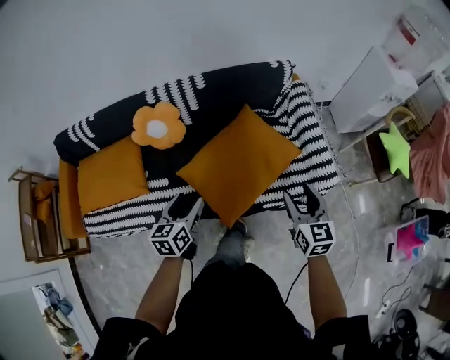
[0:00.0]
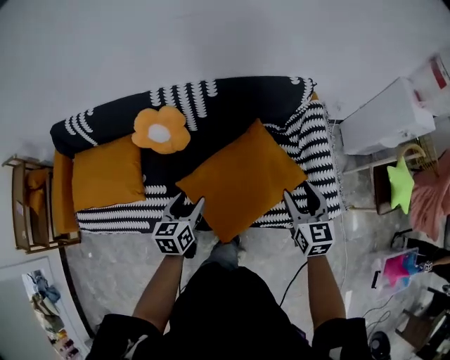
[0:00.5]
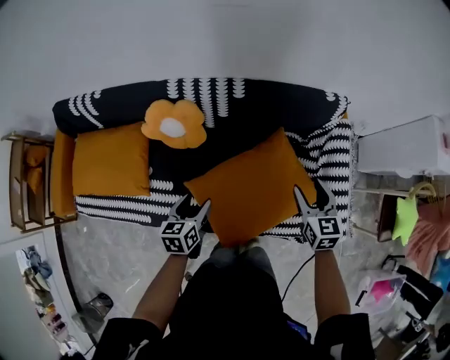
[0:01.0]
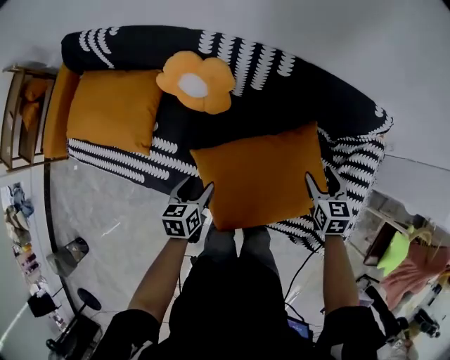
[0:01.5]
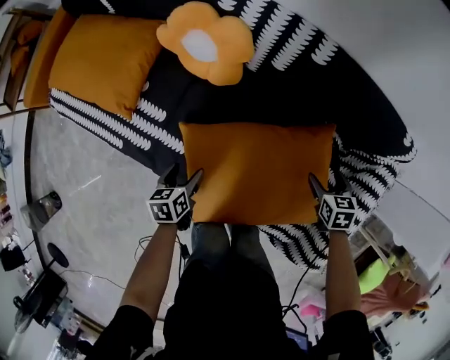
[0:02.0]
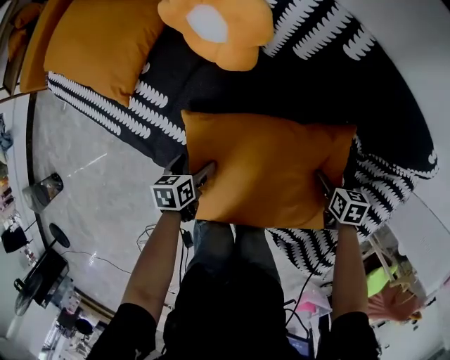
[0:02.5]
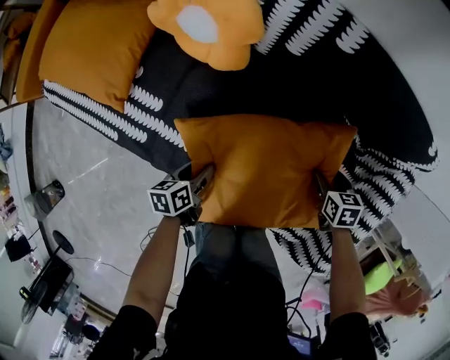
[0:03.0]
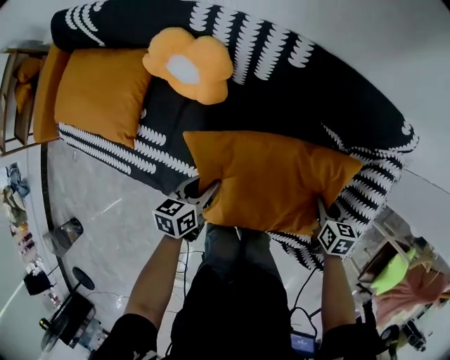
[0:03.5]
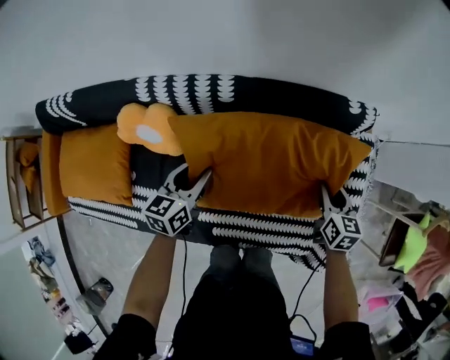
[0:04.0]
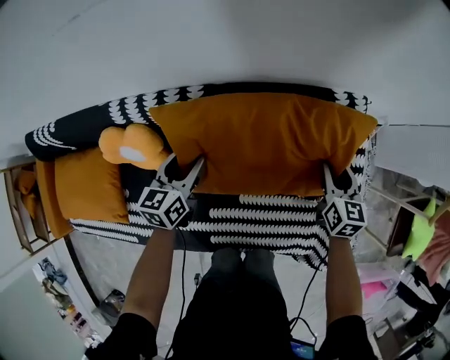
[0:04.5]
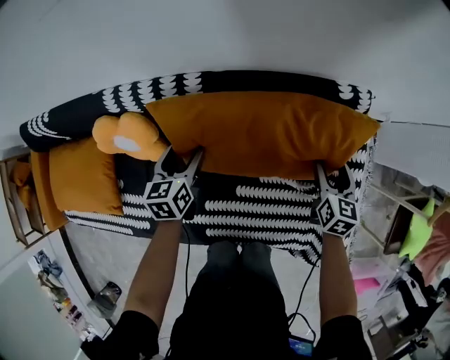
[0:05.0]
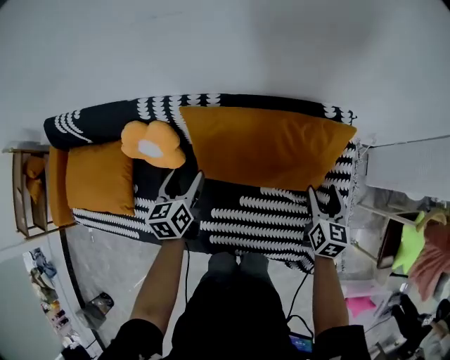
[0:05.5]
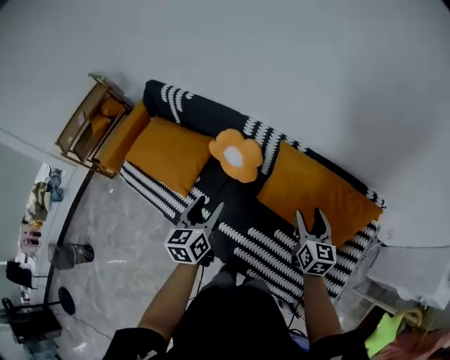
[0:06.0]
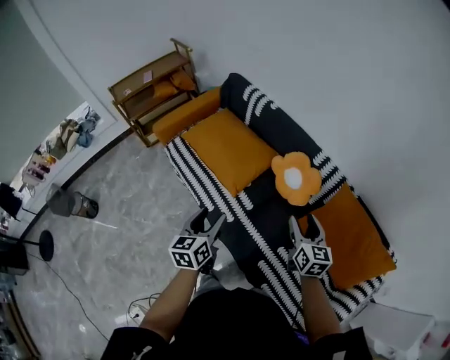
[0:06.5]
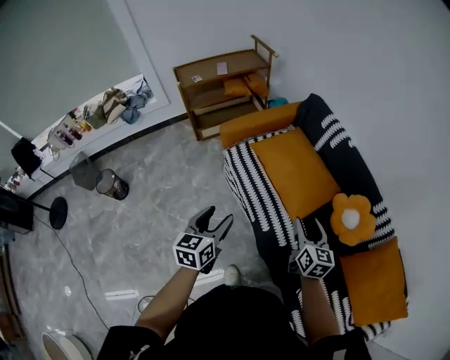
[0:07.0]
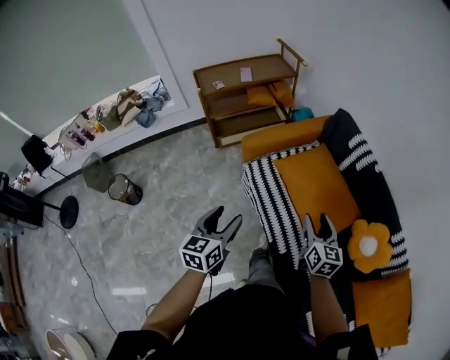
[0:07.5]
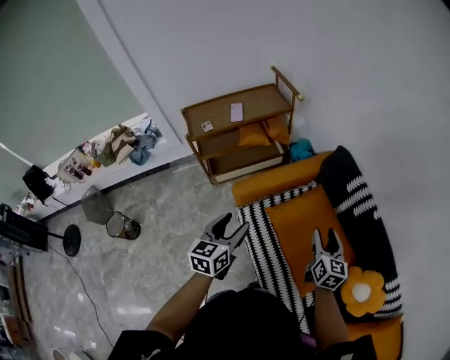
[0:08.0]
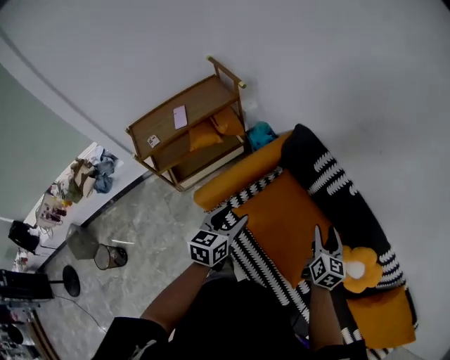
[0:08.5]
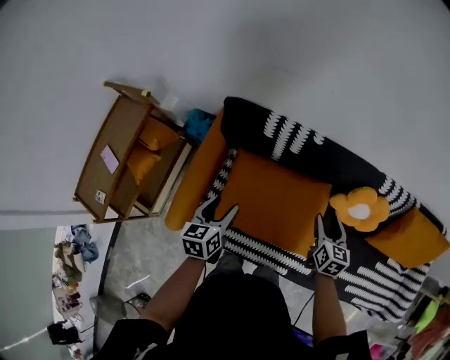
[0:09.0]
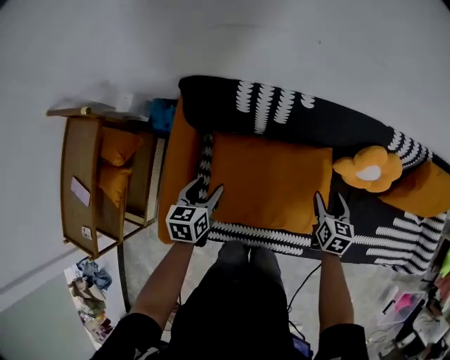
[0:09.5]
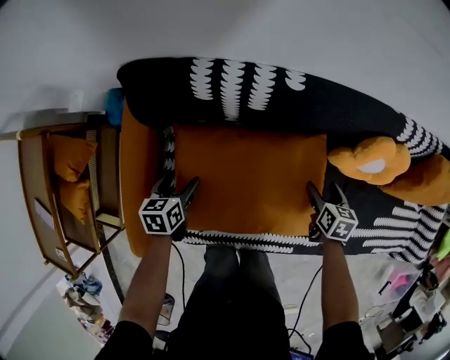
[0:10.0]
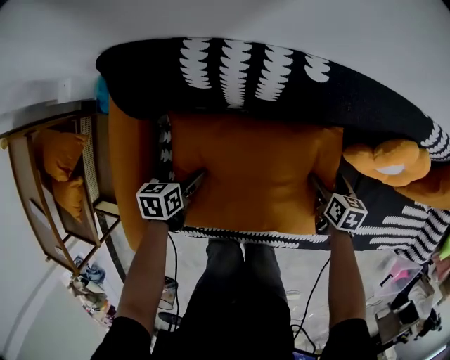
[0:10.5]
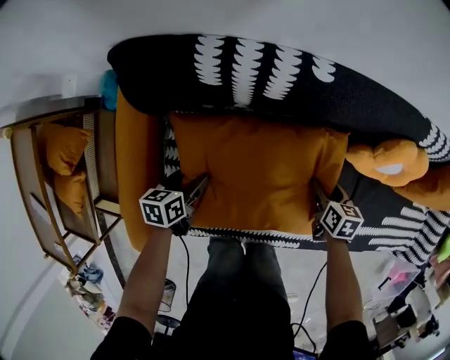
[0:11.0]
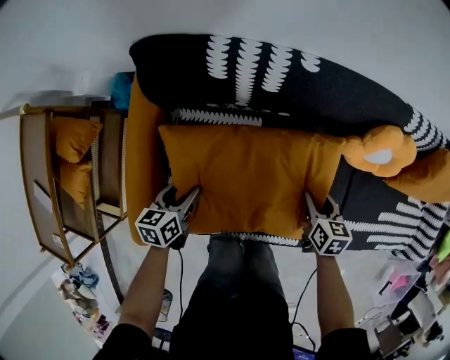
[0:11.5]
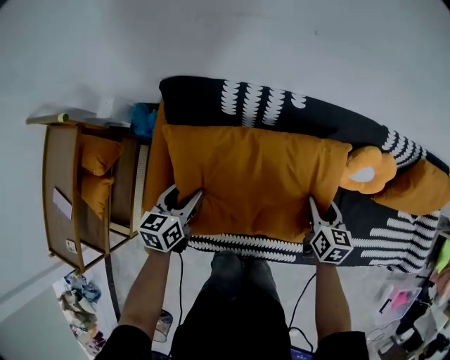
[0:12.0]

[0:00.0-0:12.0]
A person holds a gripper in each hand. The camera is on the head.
0:00.0 to 0:02.0: The left gripper shifts some 30 cm downward, and changes its angle by about 50 degrees. The right gripper shifts by roughly 40 cm, and angles its fingers downward, by approximately 40 degrees.
0:02.0 to 0:04.0: The right gripper goes roughly 10 cm upward, turns by some 40 degrees, and closes. Meanwhile the left gripper changes place by roughly 30 cm, swivels about 40 degrees, and closes its fingers.
0:04.0 to 0:06.0: The right gripper shifts by roughly 25 cm, and swivels some 30 degrees. Meanwhile the left gripper travels upward by roughly 20 cm, and turns by roughly 40 degrees.
0:06.0 to 0:08.0: Both grippers are carried roughly 70 cm. The right gripper changes its angle by roughly 30 degrees; the left gripper turns by roughly 30 degrees.
0:08.0 to 0:10.0: The grippers both shift downward by about 35 cm. The right gripper tips its fingers downward by roughly 40 degrees; the left gripper tips its fingers downward by some 30 degrees.
0:10.0 to 0:12.0: The right gripper is displaced upward and to the left by approximately 15 cm, and closes up; the left gripper travels upward by about 15 cm, and swivels approximately 20 degrees.

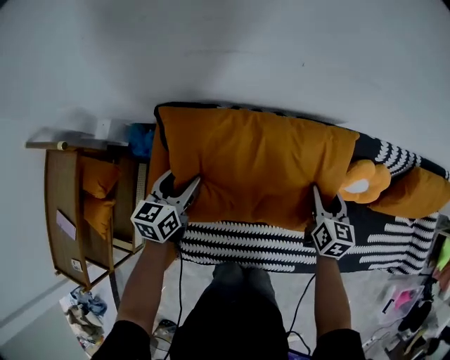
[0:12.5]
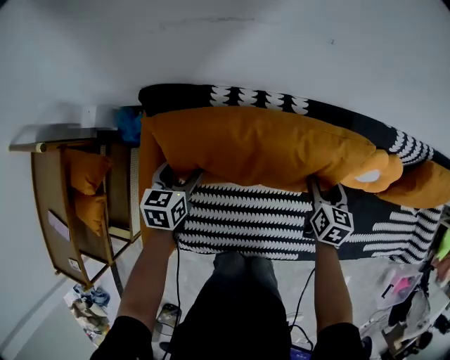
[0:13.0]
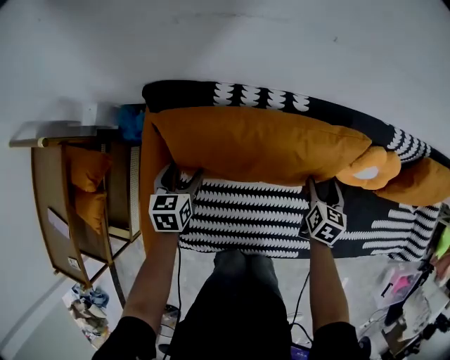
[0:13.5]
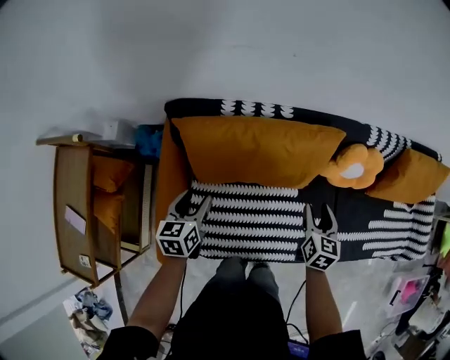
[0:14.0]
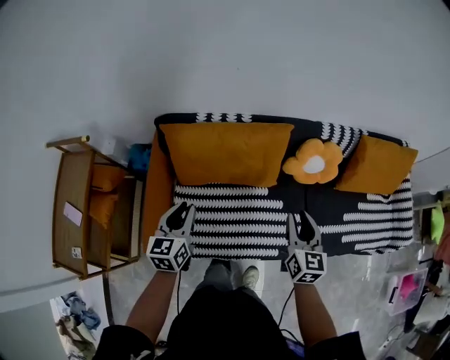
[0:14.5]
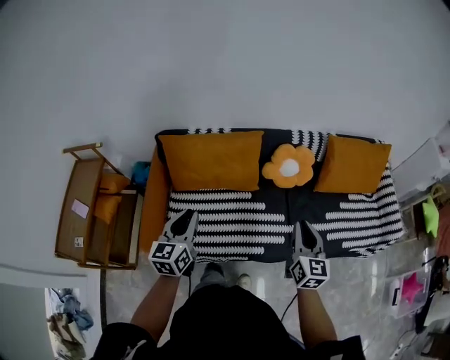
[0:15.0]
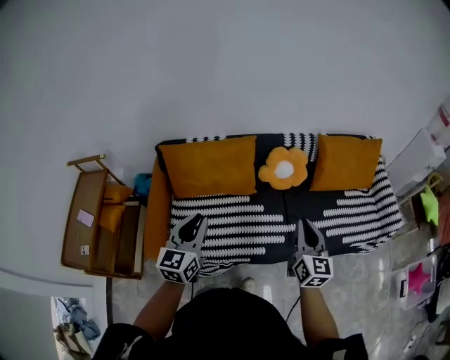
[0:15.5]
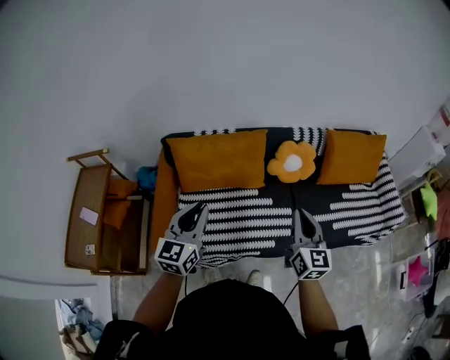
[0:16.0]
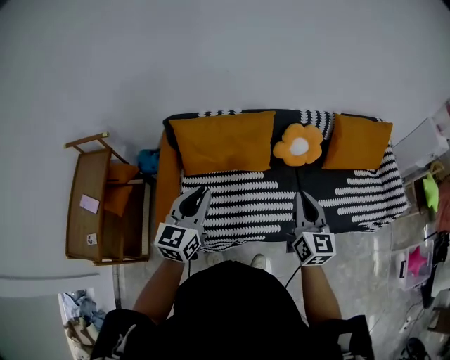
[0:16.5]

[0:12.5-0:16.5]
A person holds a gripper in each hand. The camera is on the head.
0:12.5 to 0:14.5: The right gripper shifts some 25 cm backward and upward. The left gripper travels backward, upward and to the right by approximately 25 cm, and closes.
0:14.5 to 0:16.5: The right gripper goes about 20 cm upward and backward, while the left gripper shifts about 20 cm upward, backward and to the right, and swivels some 20 degrees.

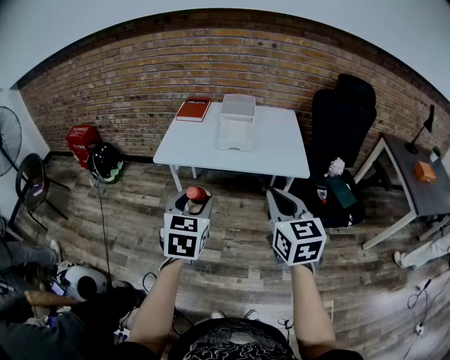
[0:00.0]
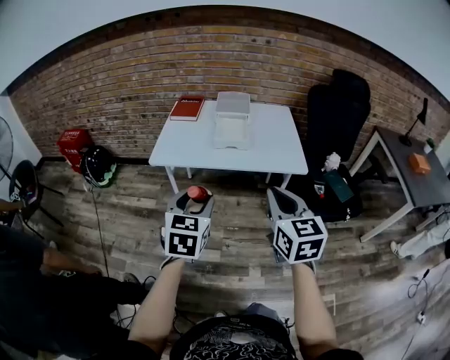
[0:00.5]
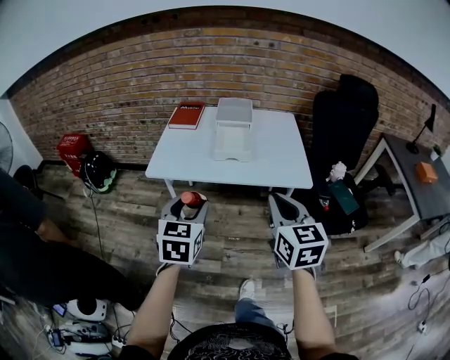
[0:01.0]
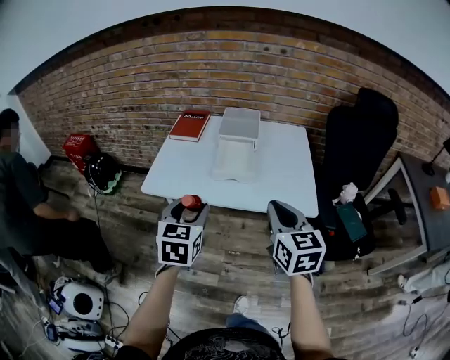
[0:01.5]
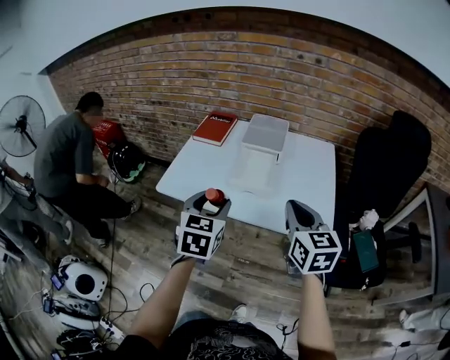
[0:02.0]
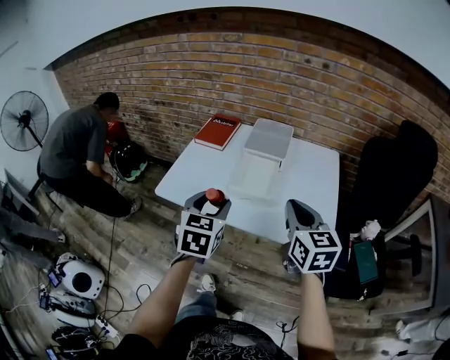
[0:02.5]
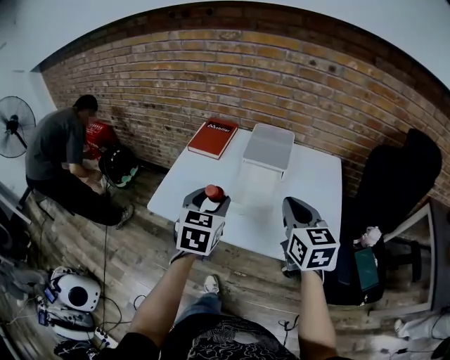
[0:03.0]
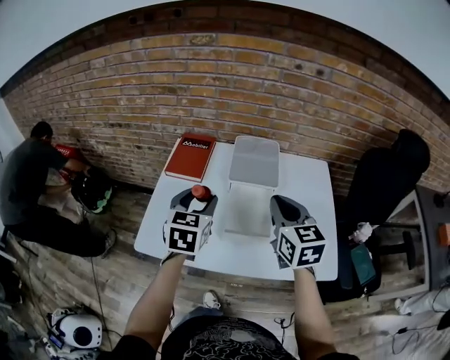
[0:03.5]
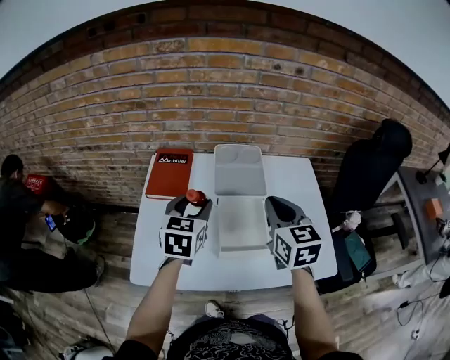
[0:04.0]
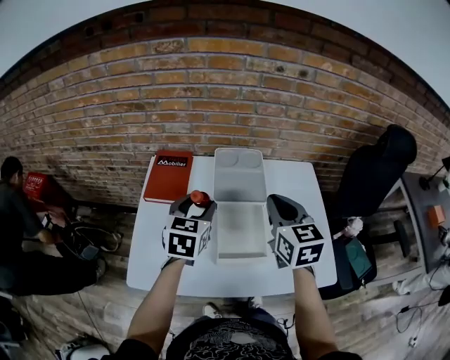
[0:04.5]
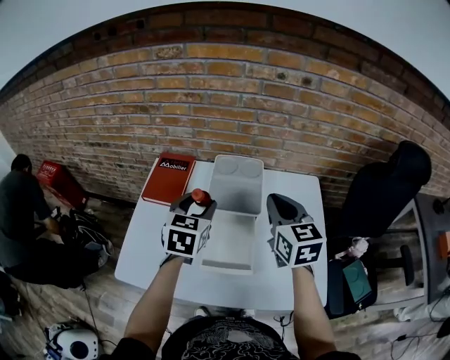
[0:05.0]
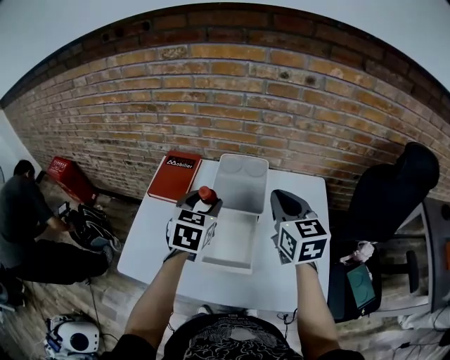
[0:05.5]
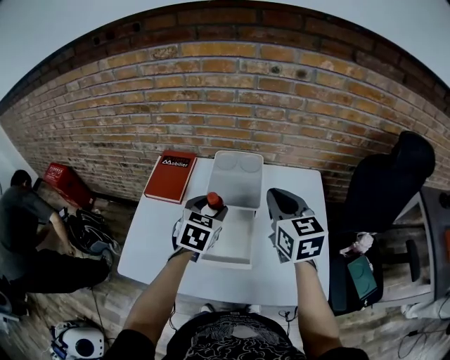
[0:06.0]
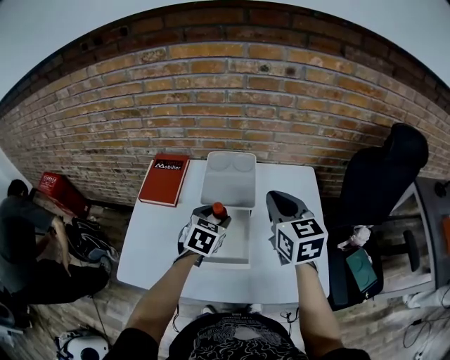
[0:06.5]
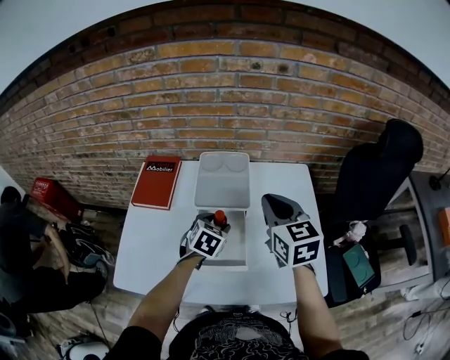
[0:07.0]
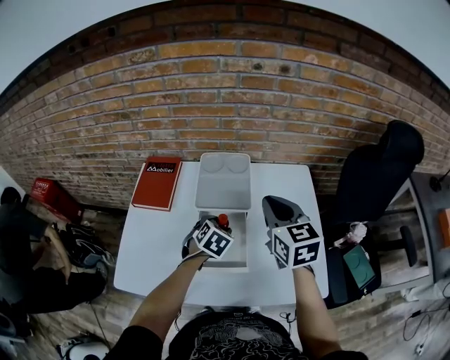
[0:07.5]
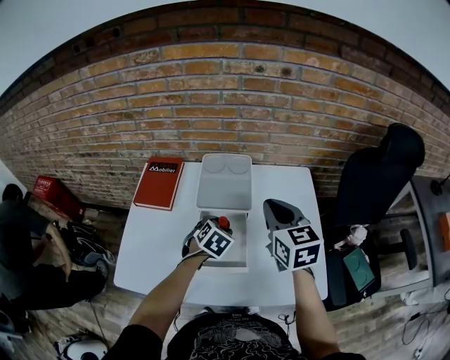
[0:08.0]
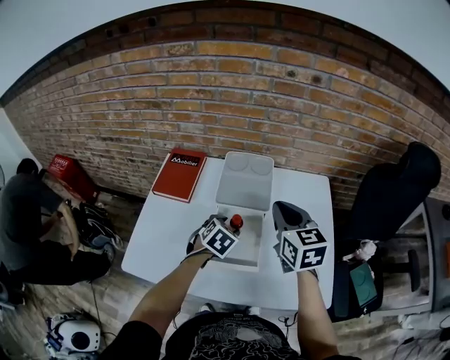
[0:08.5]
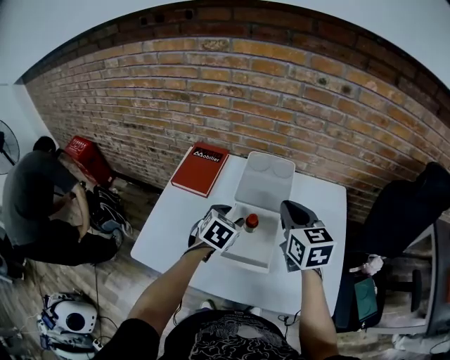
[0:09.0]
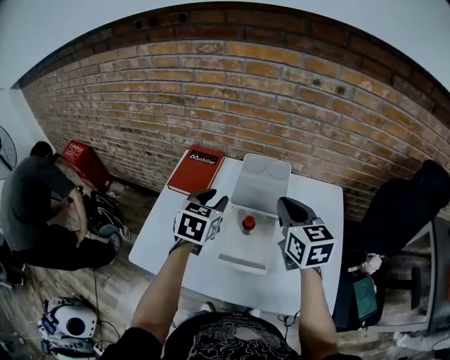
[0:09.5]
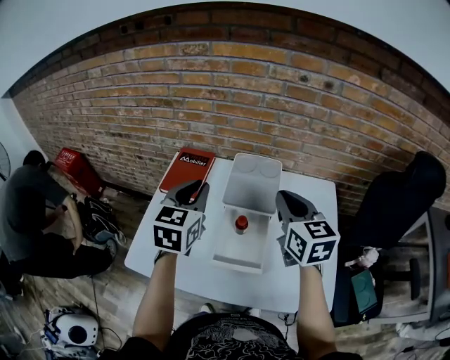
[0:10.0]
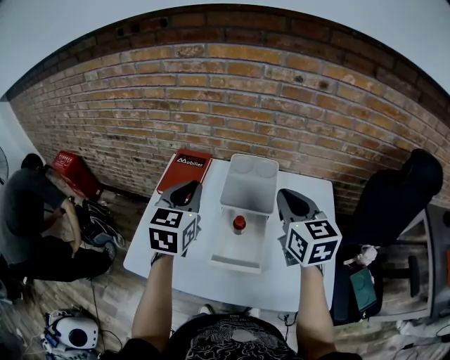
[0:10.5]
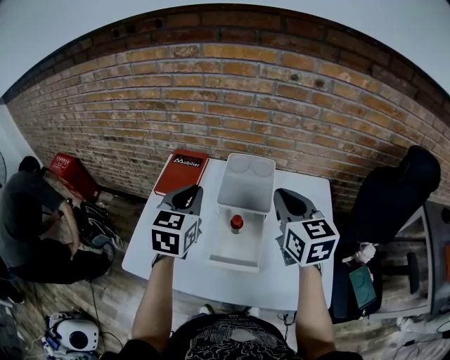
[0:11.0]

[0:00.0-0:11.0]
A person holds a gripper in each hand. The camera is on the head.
0:00.0 to 0:02.0: Both grippers travel together forward, some 25 cm.
0:02.0 to 0:03.5: Both grippers travel together forward, approximately 25 cm.
0:03.5 to 0:05.5: The two grippers go approximately 15 cm forward and to the right.
0:05.5 to 0:07.5: The left gripper goes roughly 20 cm downward and to the right, and turns by roughly 30 degrees.
0:07.5 to 0:09.0: The right gripper moves to the left, approximately 5 cm. The left gripper goes approximately 10 cm to the left and upward.
0:09.0 to 0:11.0: The left gripper moves upward, some 15 cm, rotates about 30 degrees, and closes up; the right gripper travels upward by about 5 cm.
